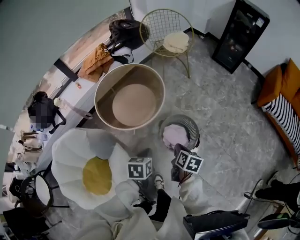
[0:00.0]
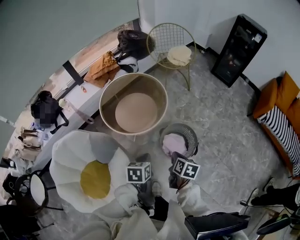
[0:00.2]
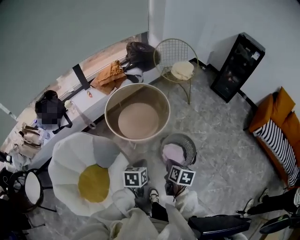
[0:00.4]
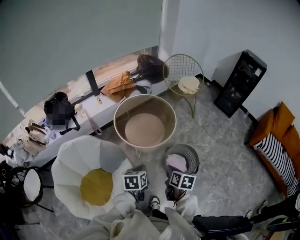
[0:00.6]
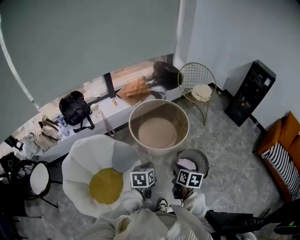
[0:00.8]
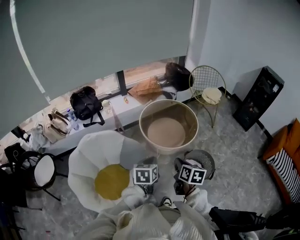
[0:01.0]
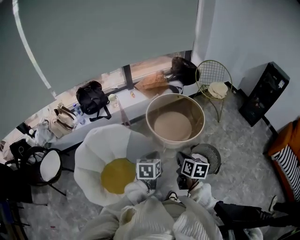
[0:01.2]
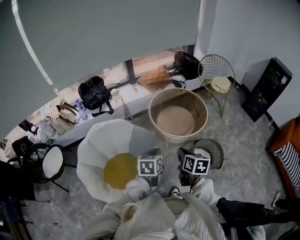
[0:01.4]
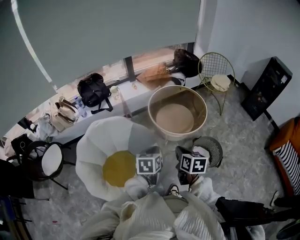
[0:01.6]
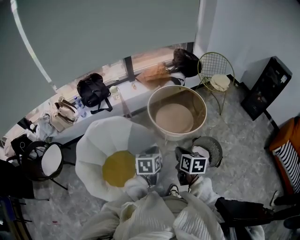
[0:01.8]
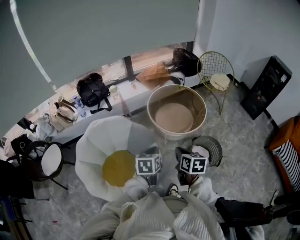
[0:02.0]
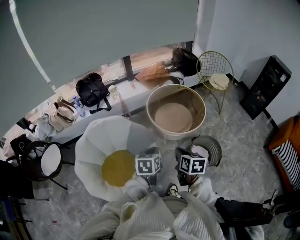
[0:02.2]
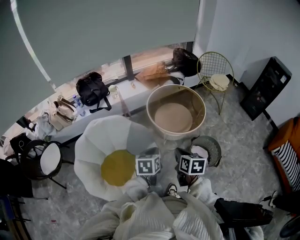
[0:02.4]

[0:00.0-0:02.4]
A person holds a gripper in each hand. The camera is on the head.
0.0 to 1.2 s: The left gripper heads to the left, upward and backward, covering roughly 30 cm, and turns by some 20 degrees. Meanwhile the right gripper heads to the left and upward, covering some 35 cm, and swivels some 30 degrees.
1.2 to 2.4 s: The grippers stay close to where they were, moving slightly.

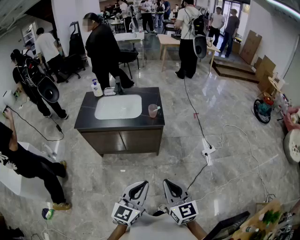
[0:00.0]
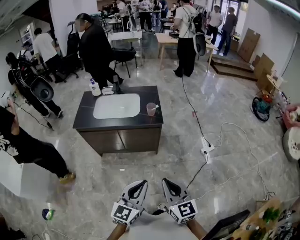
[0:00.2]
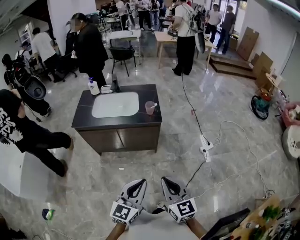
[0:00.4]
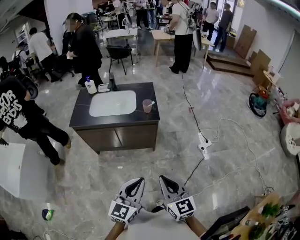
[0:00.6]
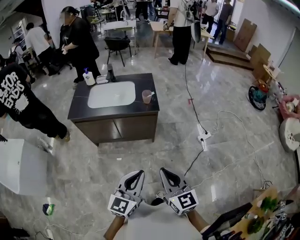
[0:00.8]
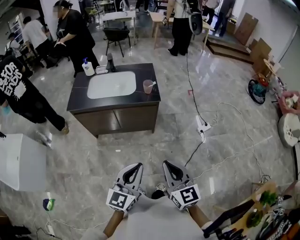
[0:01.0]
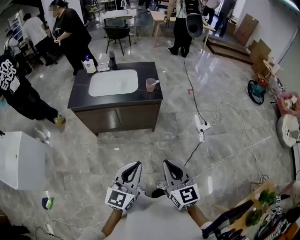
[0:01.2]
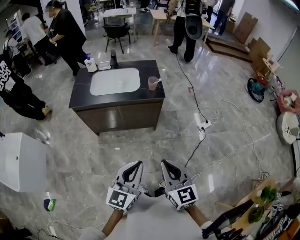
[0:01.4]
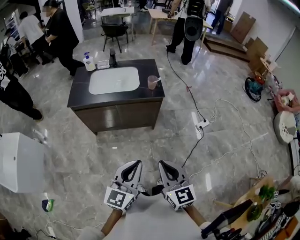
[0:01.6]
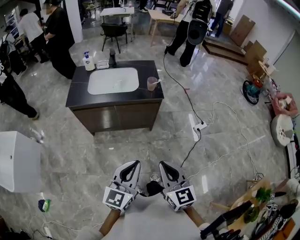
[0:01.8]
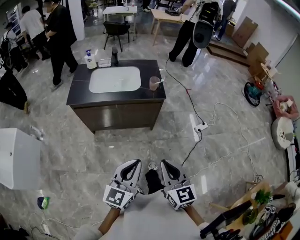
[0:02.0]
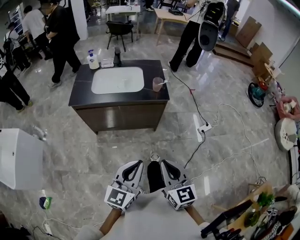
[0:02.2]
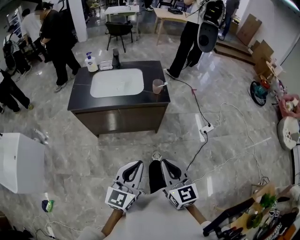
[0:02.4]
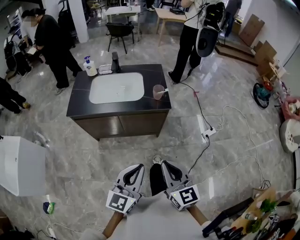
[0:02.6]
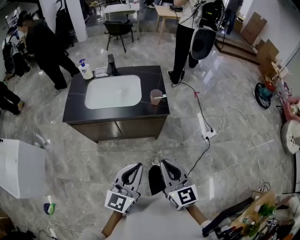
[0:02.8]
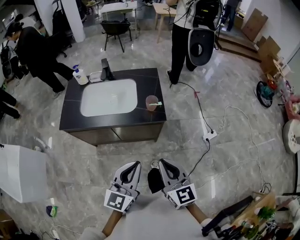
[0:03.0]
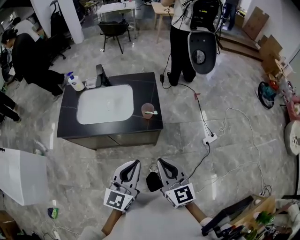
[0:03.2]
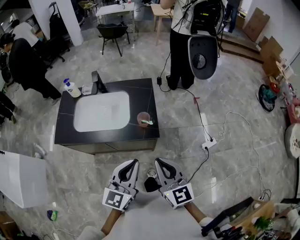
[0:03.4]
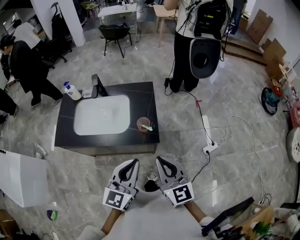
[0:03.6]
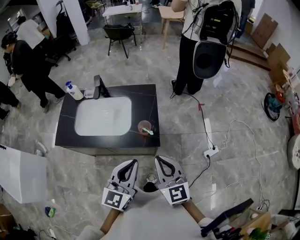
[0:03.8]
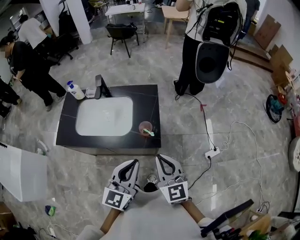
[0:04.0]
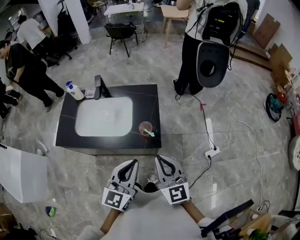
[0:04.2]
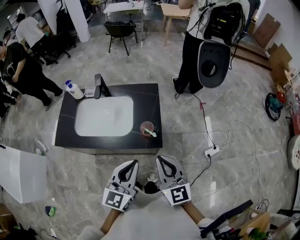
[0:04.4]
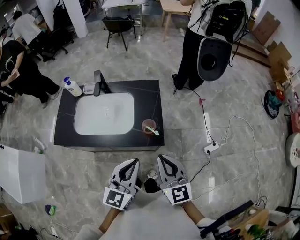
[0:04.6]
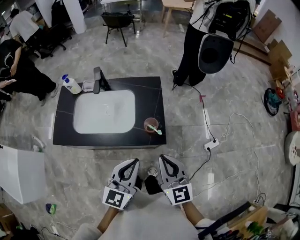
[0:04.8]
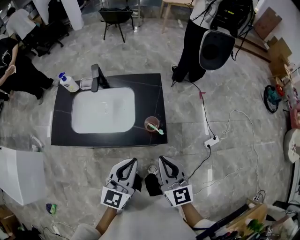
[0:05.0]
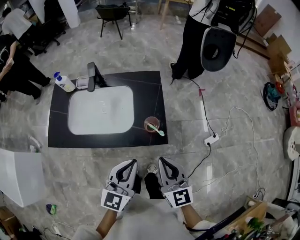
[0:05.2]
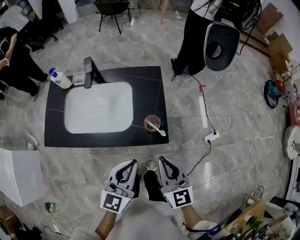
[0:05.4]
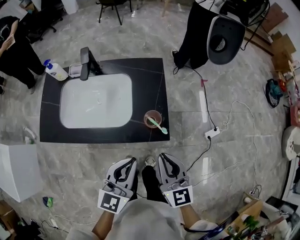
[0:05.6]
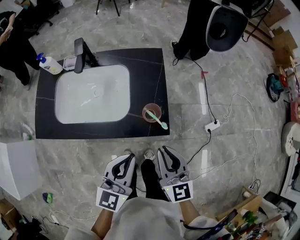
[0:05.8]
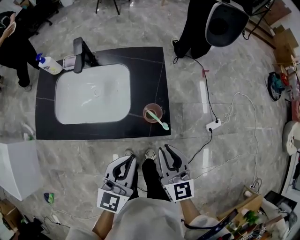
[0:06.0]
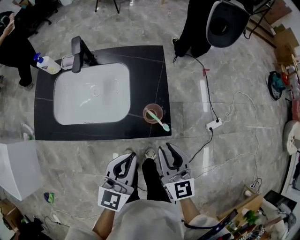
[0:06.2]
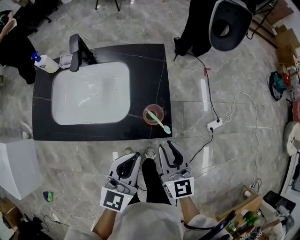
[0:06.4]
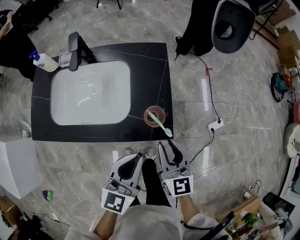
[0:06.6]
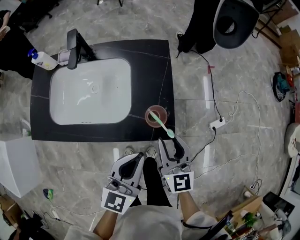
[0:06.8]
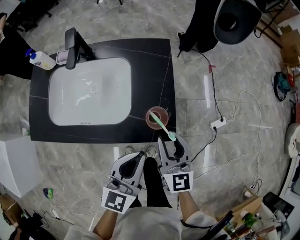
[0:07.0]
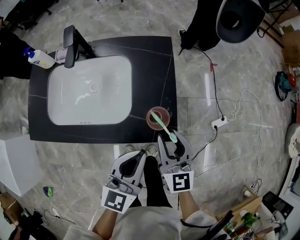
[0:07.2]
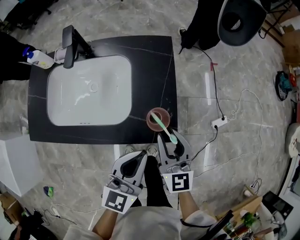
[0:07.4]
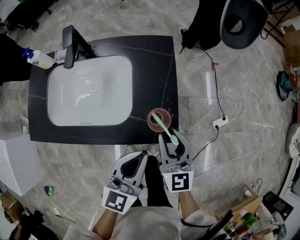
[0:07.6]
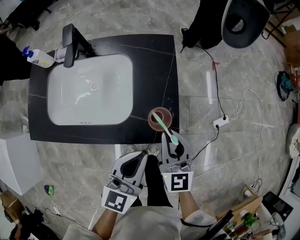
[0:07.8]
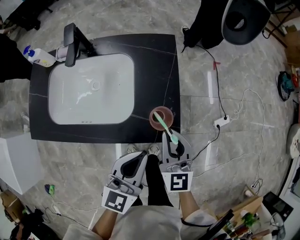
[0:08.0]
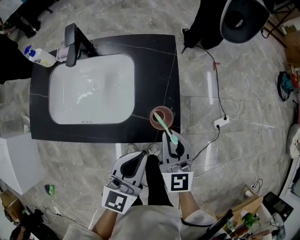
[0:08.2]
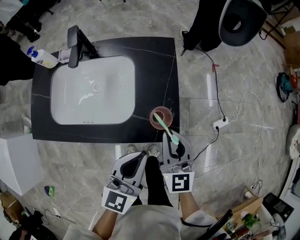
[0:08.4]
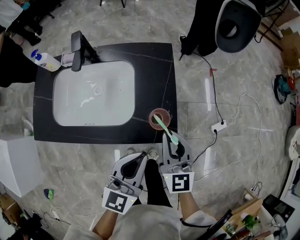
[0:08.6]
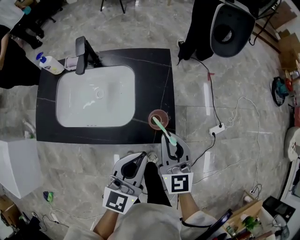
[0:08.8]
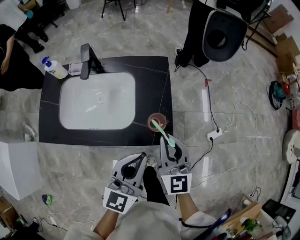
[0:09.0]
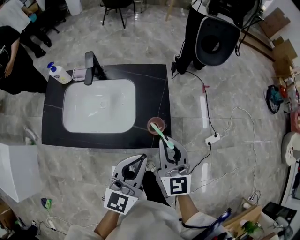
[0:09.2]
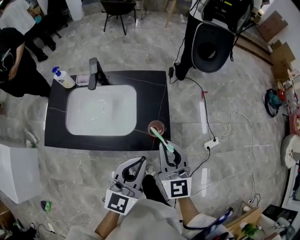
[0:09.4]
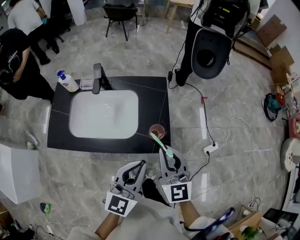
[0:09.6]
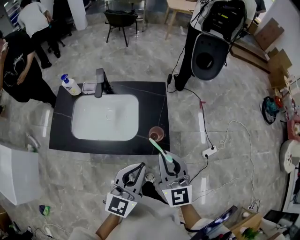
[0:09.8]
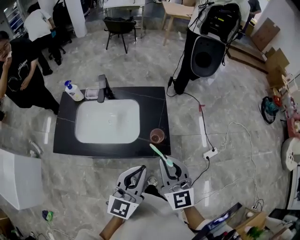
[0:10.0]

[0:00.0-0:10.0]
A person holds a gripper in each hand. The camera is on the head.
0.0 to 1.4 s: Both grippers move to the left, approximately 5 cm.
1.4 to 2.8 s: Both grippers move forward, about 15 cm.
2.8 to 4.2 s: Both grippers travel together forward, some 20 cm.
4.2 to 5.8 s: The two grippers go about 10 cm downward.
5.8 to 7.2 s: The right gripper shifts about 10 cm forward and downward, and opens up; the left gripper ends up about 5 cm from where it was.
7.2 to 8.6 s: The right gripper closes.
8.6 to 10.0 s: The left gripper heads upward, covering approximately 10 cm. Meanwhile the right gripper goes roughly 15 cm upward and backward.

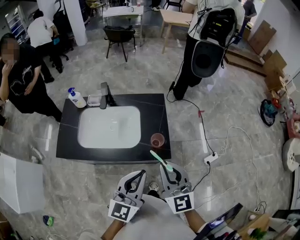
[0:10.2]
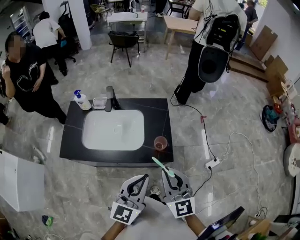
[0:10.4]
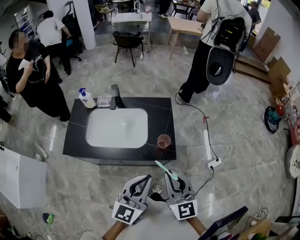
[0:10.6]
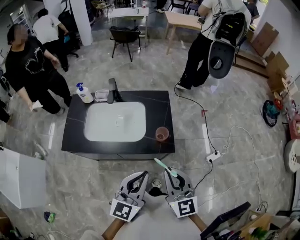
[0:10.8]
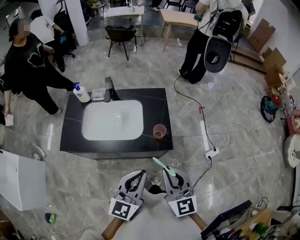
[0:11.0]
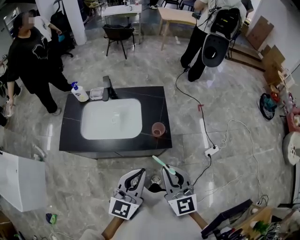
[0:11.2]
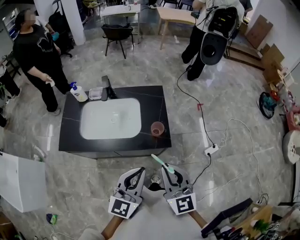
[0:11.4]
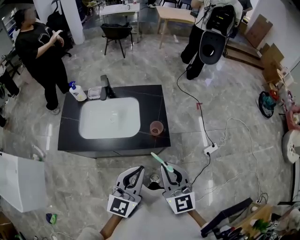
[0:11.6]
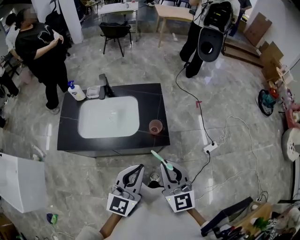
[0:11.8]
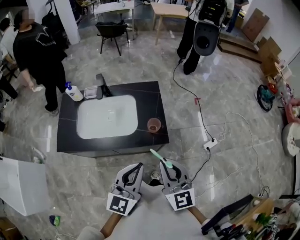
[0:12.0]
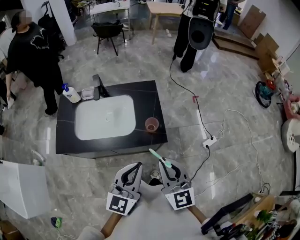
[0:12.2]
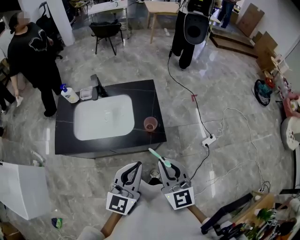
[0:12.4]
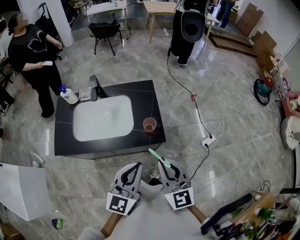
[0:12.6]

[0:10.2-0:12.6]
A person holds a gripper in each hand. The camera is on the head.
10.2 to 11.4 s: The right gripper is displaced backward by about 5 cm.
11.4 to 12.6 s: The grippers stay close to where they were, moving slightly.

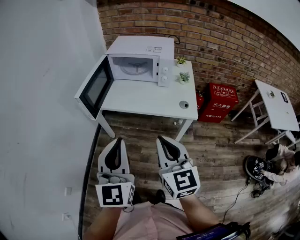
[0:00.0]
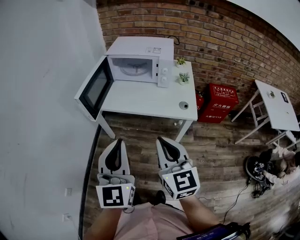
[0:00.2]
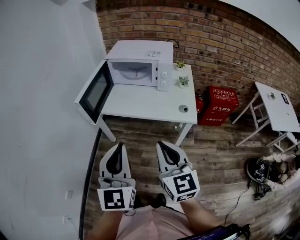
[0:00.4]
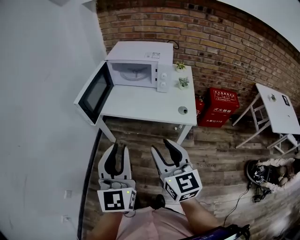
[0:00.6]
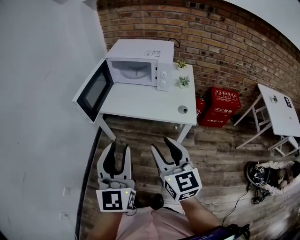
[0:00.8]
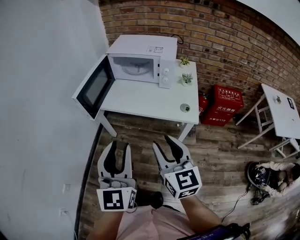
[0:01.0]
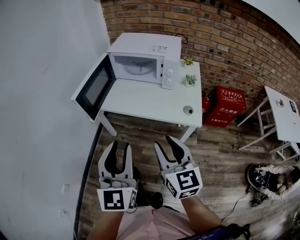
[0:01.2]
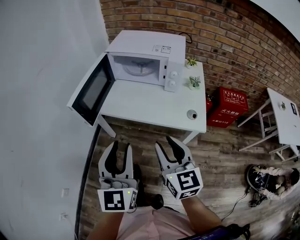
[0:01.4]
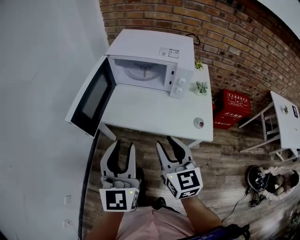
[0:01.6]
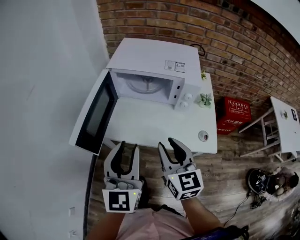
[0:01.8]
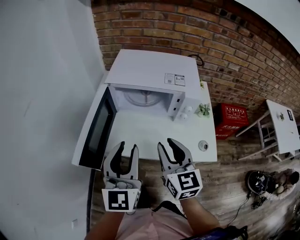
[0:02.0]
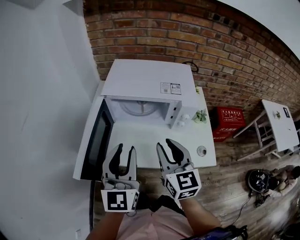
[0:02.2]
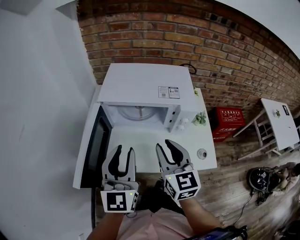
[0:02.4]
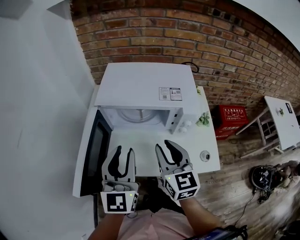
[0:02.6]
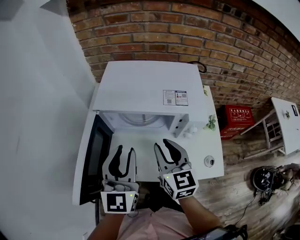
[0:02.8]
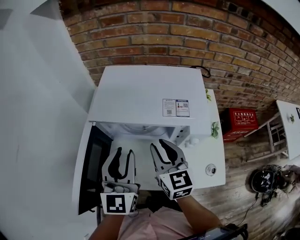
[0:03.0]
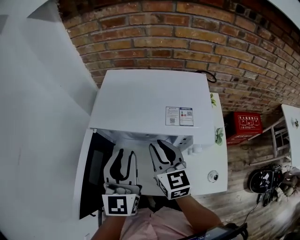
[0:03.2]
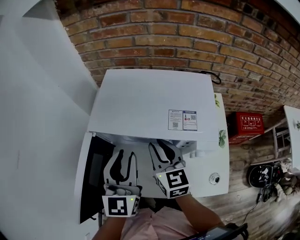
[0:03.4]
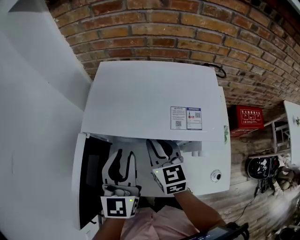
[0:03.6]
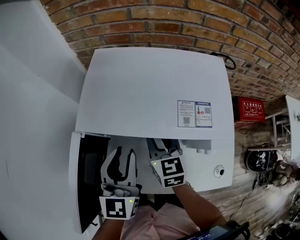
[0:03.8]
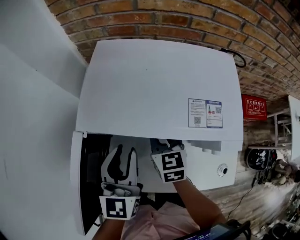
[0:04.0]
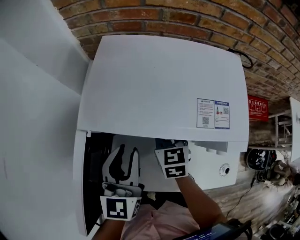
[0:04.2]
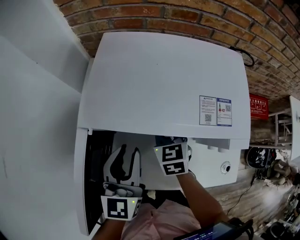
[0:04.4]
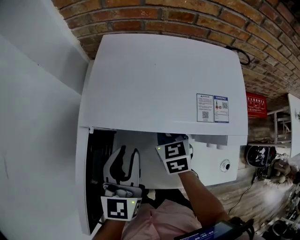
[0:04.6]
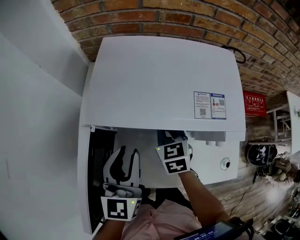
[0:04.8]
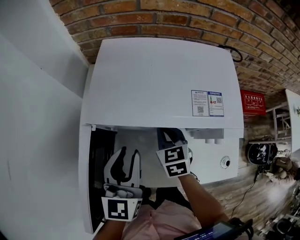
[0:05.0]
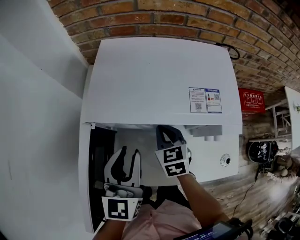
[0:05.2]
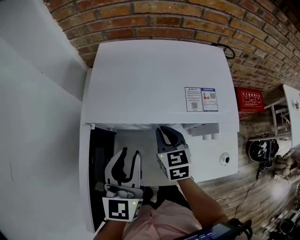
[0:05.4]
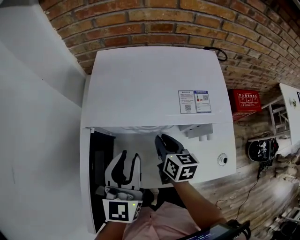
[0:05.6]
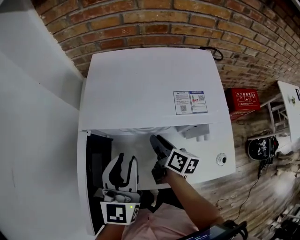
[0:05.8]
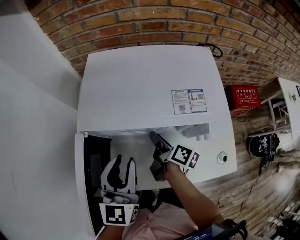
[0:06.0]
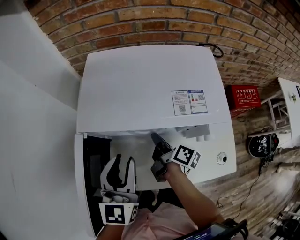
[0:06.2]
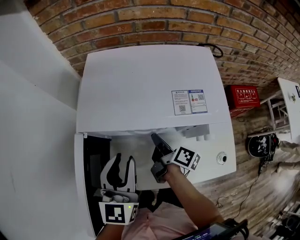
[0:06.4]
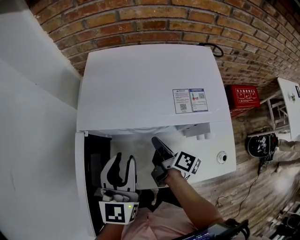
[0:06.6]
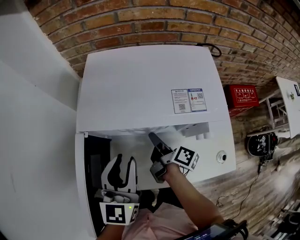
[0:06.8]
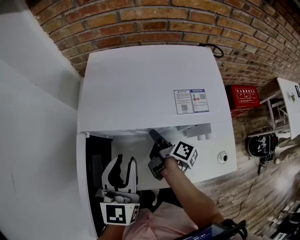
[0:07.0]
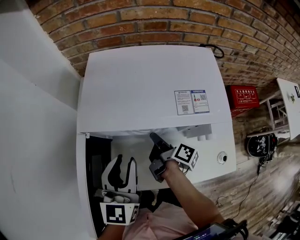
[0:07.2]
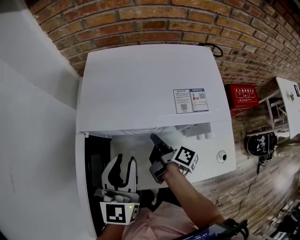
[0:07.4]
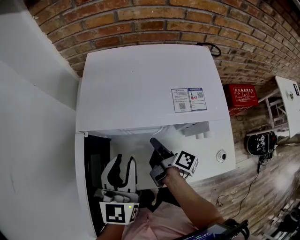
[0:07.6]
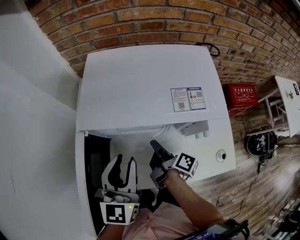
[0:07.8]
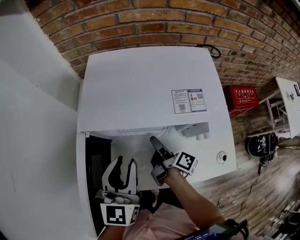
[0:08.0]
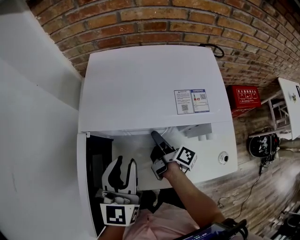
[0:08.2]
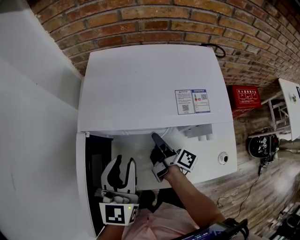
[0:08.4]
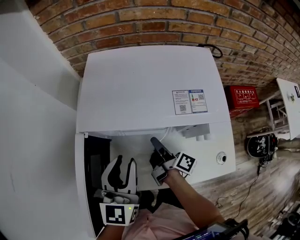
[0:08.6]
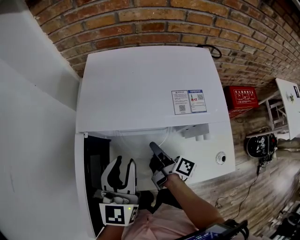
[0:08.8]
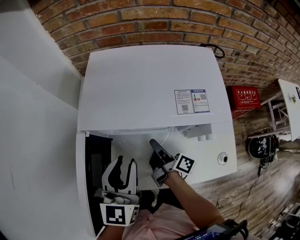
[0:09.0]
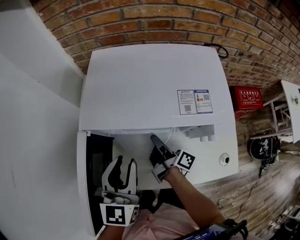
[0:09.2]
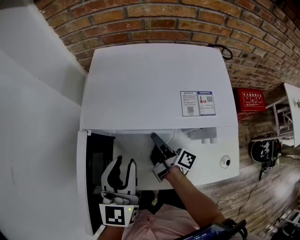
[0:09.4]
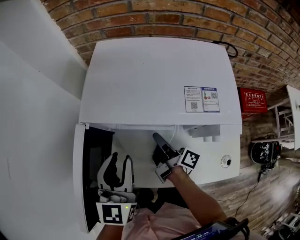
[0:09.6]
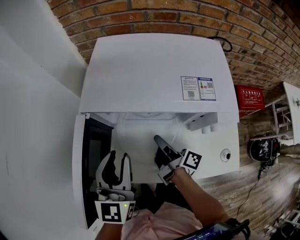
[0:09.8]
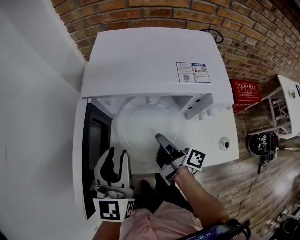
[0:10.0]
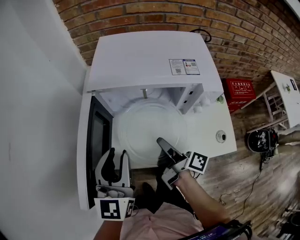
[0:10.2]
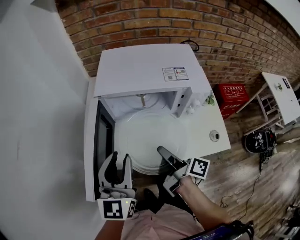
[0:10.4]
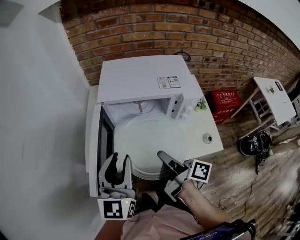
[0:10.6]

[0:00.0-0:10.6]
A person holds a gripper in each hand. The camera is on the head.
0.0 to 1.6 s: The right gripper travels forward and downward by roughly 20 cm, and opens up. Meanwhile the left gripper travels forward by approximately 15 cm, and opens up.
1.6 to 3.0 s: Both grippers travel together forward, approximately 30 cm.
3.0 to 4.6 s: The left gripper goes about 10 cm downward and forward, while the right gripper is displaced downward and forward by roughly 20 cm, changes its angle by approximately 30 degrees, and closes its fingers.
4.6 to 6.0 s: The right gripper changes place by some 5 cm, rotates around the line of its fingers by some 70 degrees, clockwise from behind, and opens.
6.0 to 7.6 s: The right gripper closes.
7.6 to 9.0 s: The right gripper opens, then closes once more.
9.0 to 10.6 s: Both grippers move backward and upward, approximately 20 cm.
